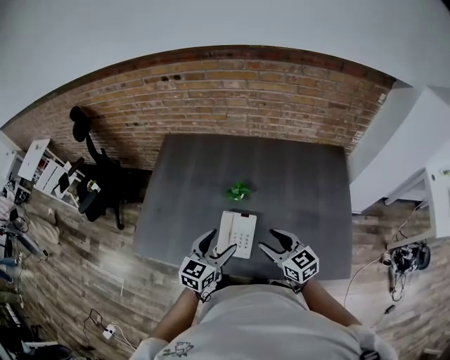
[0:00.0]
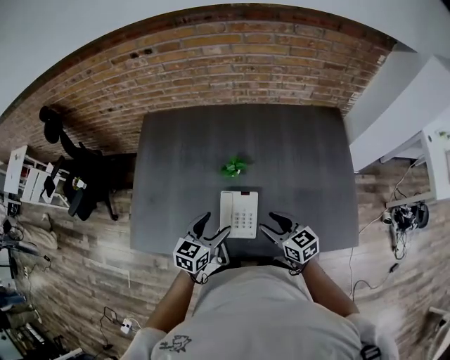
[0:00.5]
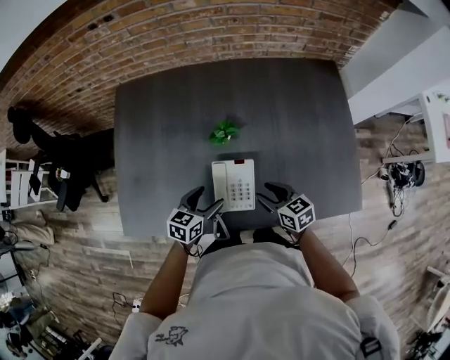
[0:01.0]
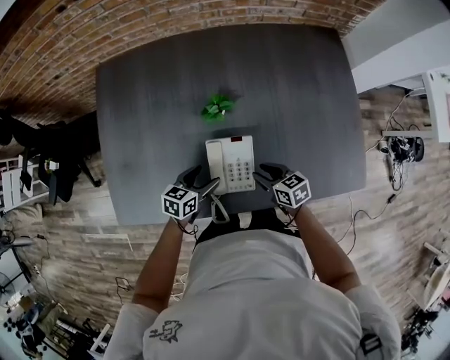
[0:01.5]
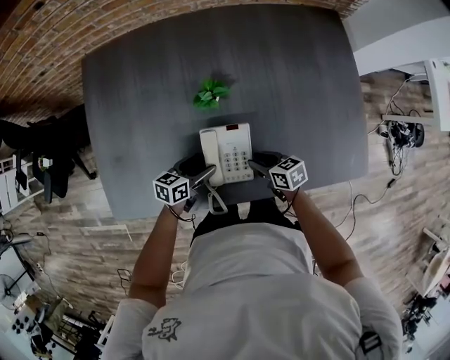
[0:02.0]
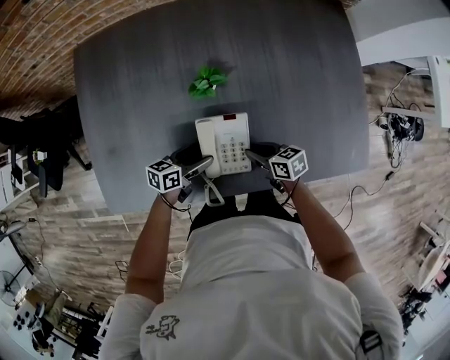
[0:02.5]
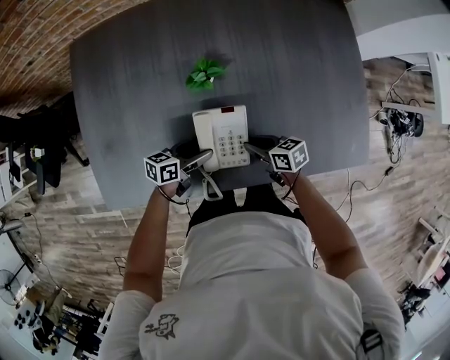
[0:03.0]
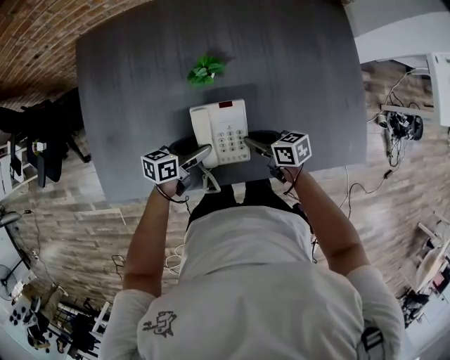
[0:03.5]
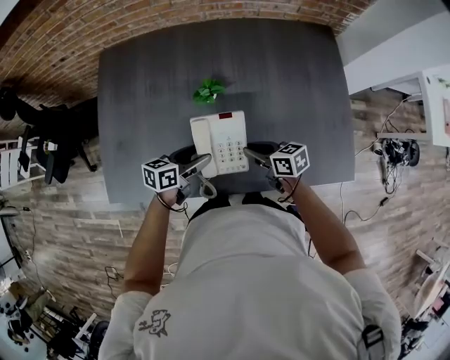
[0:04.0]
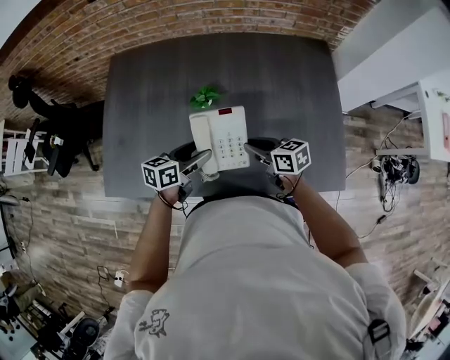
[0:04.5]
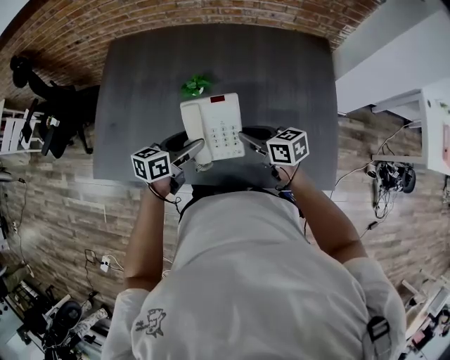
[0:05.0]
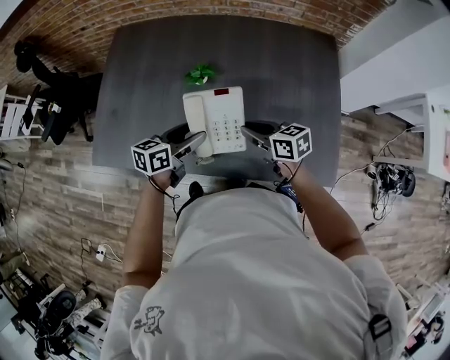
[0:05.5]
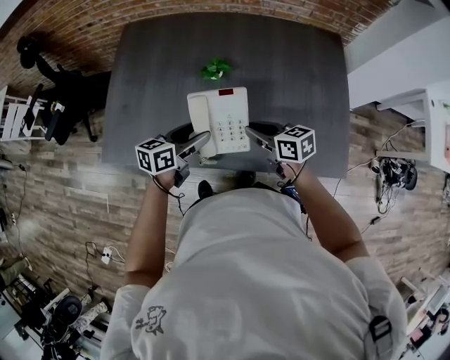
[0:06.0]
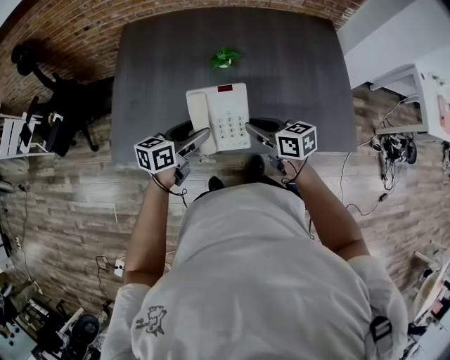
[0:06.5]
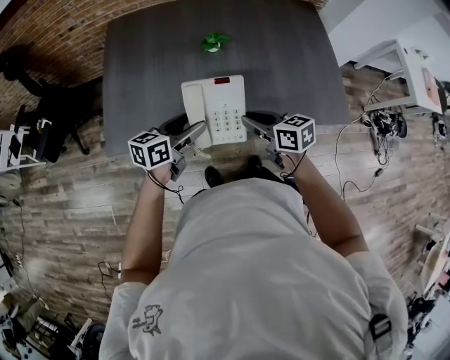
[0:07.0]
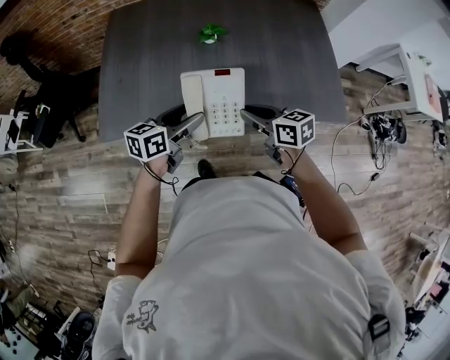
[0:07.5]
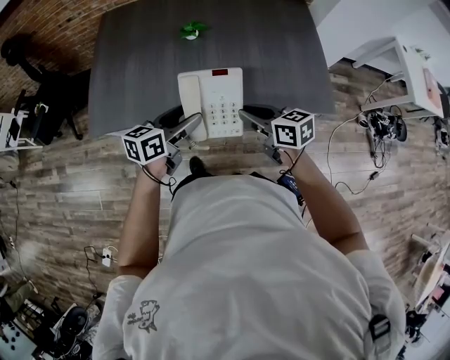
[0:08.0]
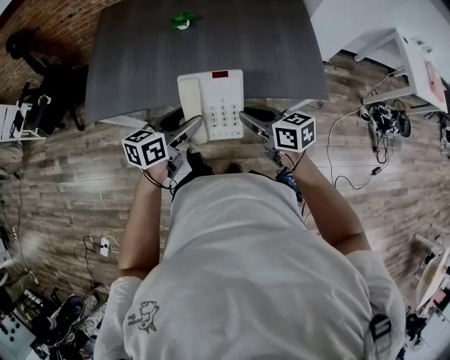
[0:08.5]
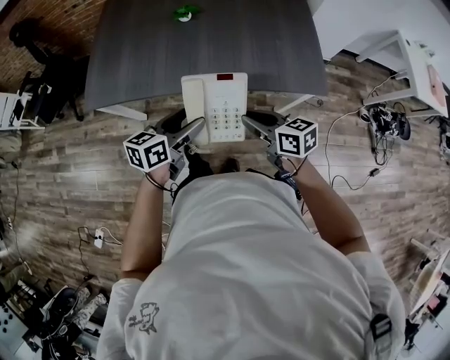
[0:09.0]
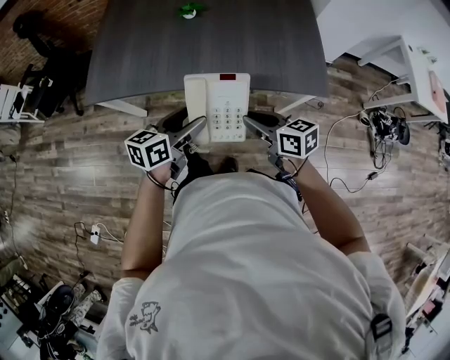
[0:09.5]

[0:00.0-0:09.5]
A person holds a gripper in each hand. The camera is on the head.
0:00.0 to 0:02.0: Both grippers travel together downward, roughly 25 cm. The left gripper changes its angle by some 40 degrees. The right gripper changes its angle by some 40 degrees, and closes its fingers.
0:02.0 to 0:04.0: The two grippers go approximately 10 cm upward.
0:04.0 to 0:05.5: Both grippers travel together upward and to the right, some 10 cm.
0:05.5 to 0:07.5: The grippers both shift backward and to the left by roughly 20 cm.
0:07.5 to 0:09.5: The grippers both shift backward and to the right by roughly 20 cm.

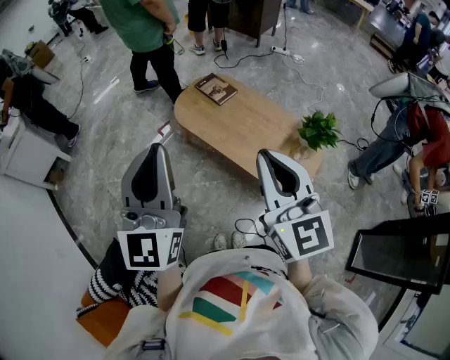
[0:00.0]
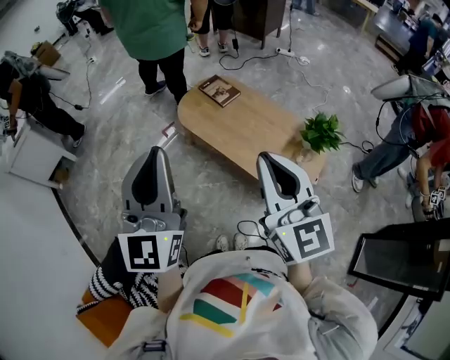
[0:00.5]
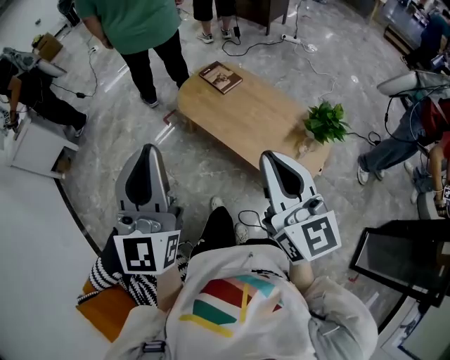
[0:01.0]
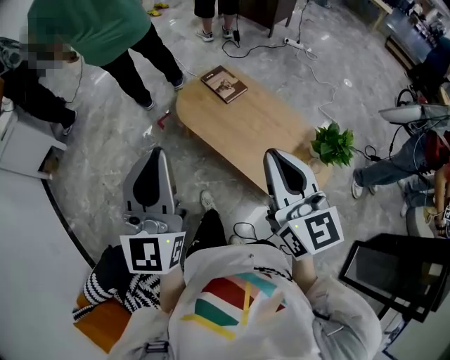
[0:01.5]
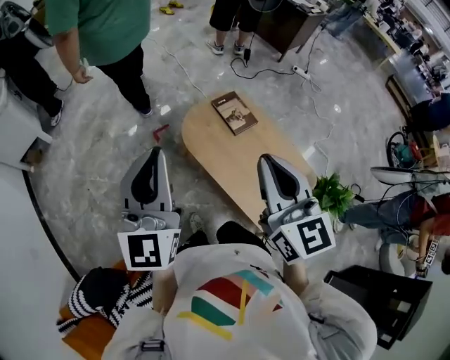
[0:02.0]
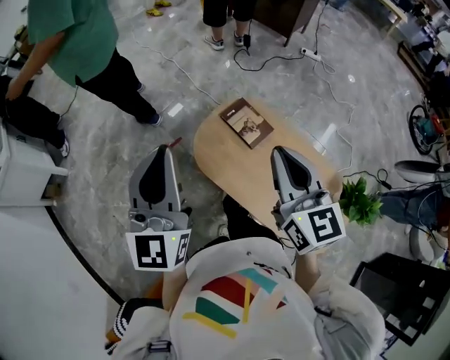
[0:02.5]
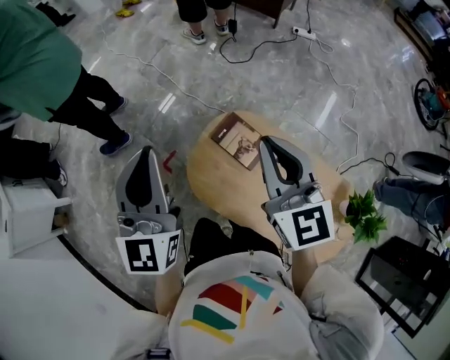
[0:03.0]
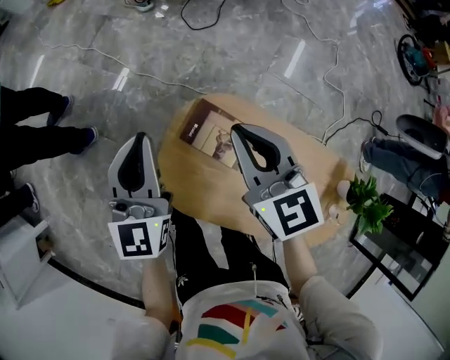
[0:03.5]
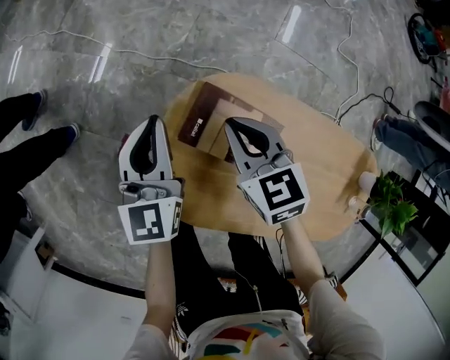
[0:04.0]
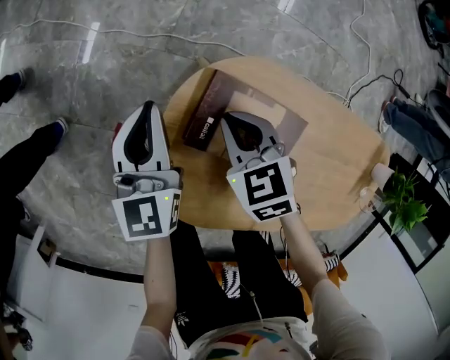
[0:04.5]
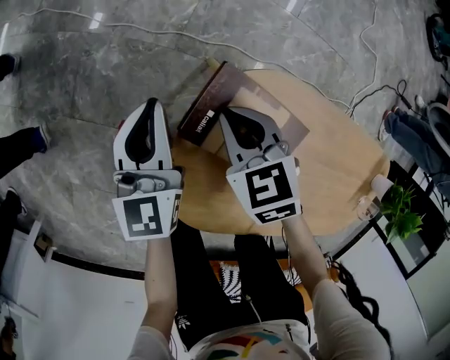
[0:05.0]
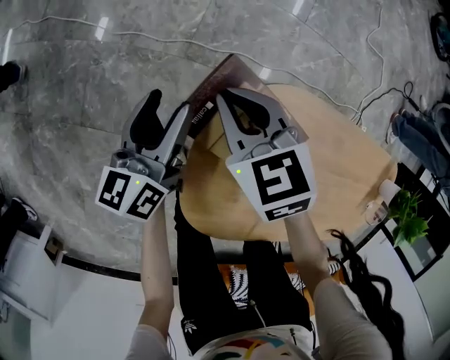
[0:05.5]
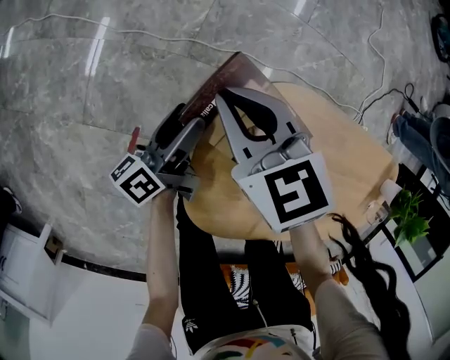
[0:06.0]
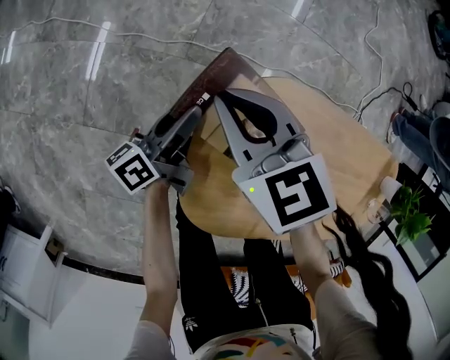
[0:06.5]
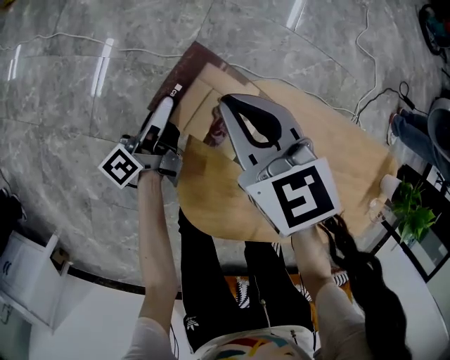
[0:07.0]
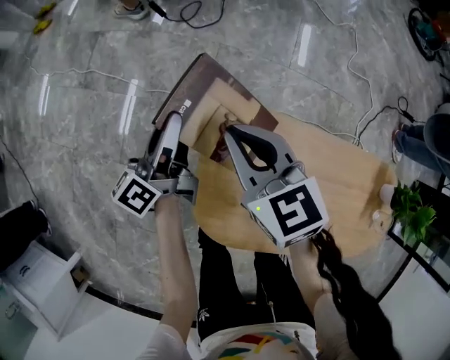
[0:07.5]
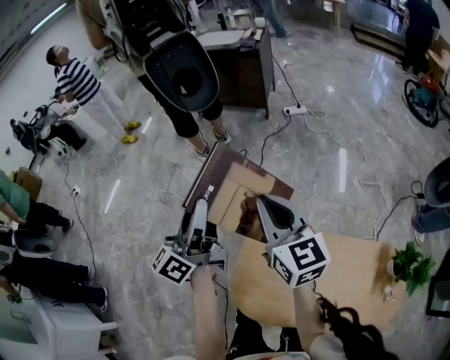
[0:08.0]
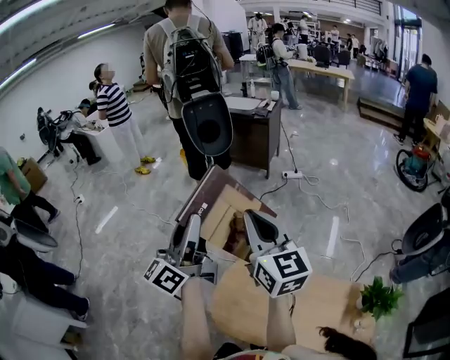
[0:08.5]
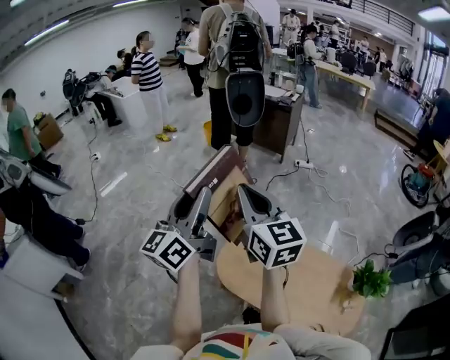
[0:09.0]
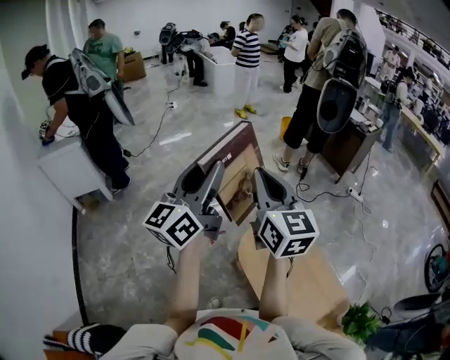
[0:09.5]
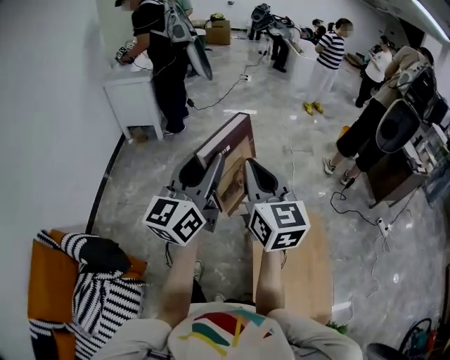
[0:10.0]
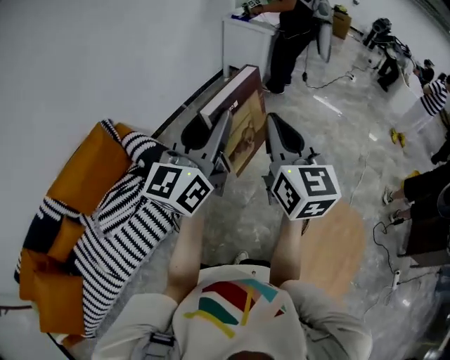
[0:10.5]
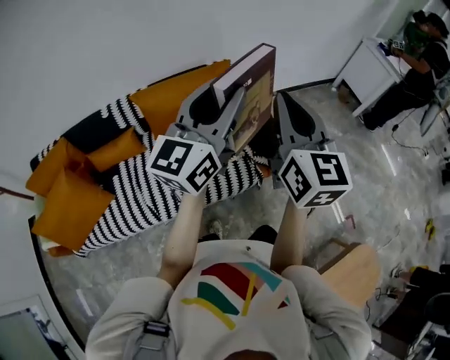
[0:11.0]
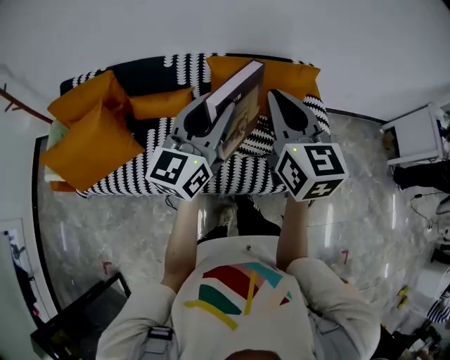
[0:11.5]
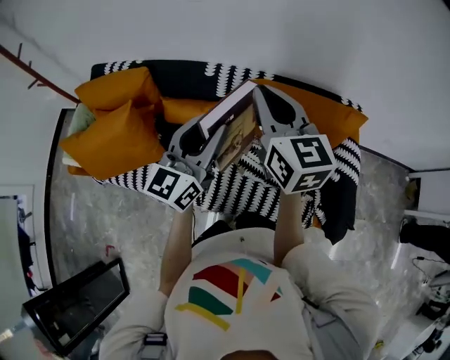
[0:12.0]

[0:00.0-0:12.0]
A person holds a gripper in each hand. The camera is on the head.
0:00.0 to 0:02.0: Both grippers move forward, roughly 30 cm.
0:02.0 to 0:04.0: The pair of grippers is taken forward, about 60 cm. The grippers both shift downward by some 50 cm. The left gripper changes its angle by about 40 degrees. Meanwhile the right gripper points its fingers some 40 degrees further downward.
0:04.0 to 0:06.0: The left gripper moves downward, some 20 cm, rotates around the line of its fingers by about 60 degrees, counterclockwise from behind, and opens its fingers; the right gripper heads forward, to the left and downward, covering roughly 15 cm.
0:06.0 to 0:08.0: Both grippers travel together upward, about 50 cm. The right gripper angles its fingers upward, by some 40 degrees, while the left gripper tilts its fingers some 30 degrees upward, and closes.
0:08.0 to 0:10.0: The pair of grippers is taken roughly 60 cm. The right gripper rotates about 70 degrees. The left gripper rotates about 80 degrees.
0:10.0 to 0:12.0: The pair of grippers is taken some 1 m. The left gripper turns by approximately 90 degrees; the right gripper changes its angle by approximately 100 degrees.

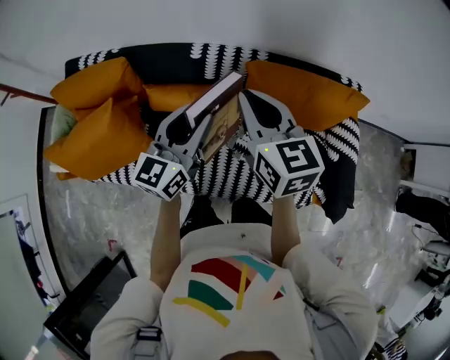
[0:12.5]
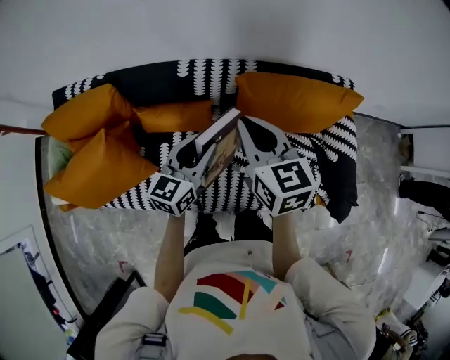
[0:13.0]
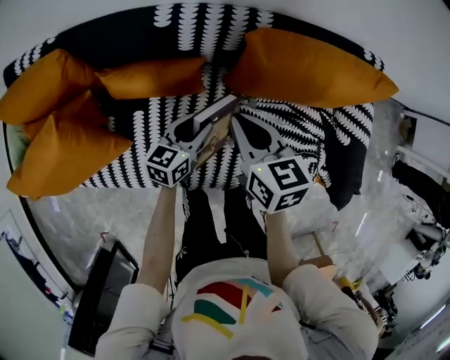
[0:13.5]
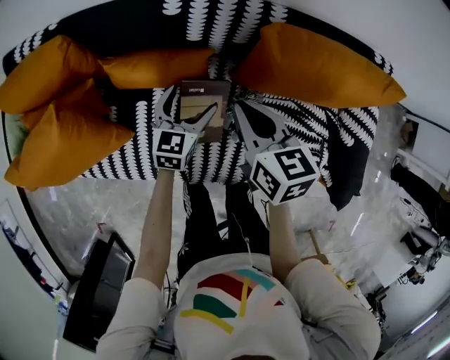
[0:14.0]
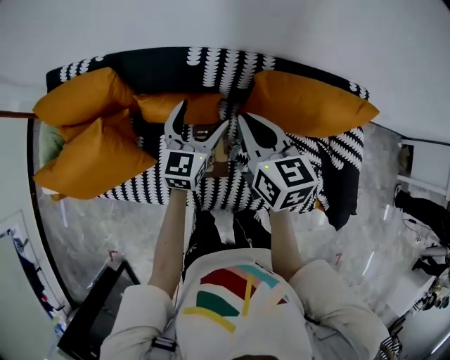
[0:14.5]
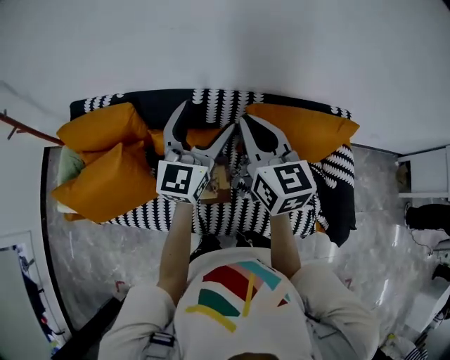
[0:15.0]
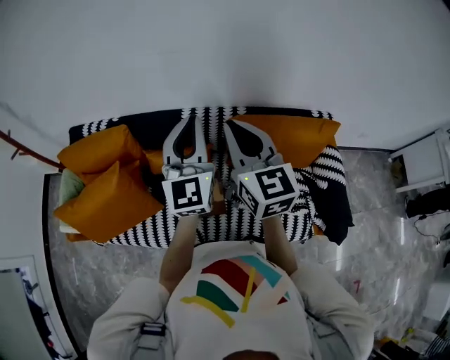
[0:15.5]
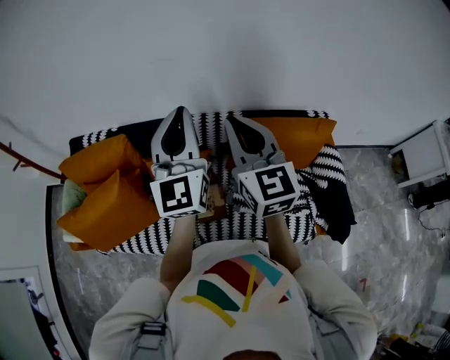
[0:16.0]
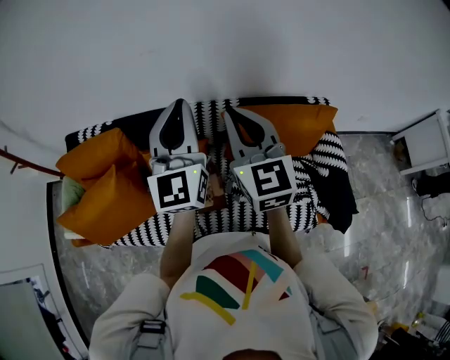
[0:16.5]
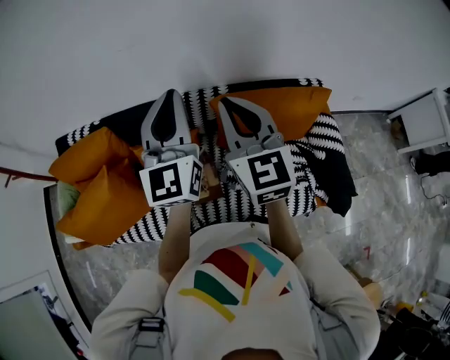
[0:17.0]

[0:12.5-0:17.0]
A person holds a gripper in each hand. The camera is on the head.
0:12.5 to 0:14.5: The left gripper travels downward and forward by approximately 15 cm, and opens its fingers. The right gripper travels downward by approximately 10 cm.
0:14.5 to 0:17.0: The right gripper travels upward by roughly 20 cm, and changes its angle by about 30 degrees. Meanwhile the left gripper travels upward by approximately 30 cm, rotates approximately 30 degrees, and closes.
